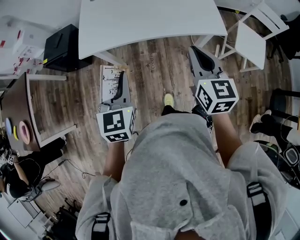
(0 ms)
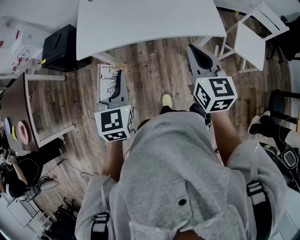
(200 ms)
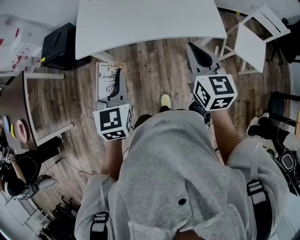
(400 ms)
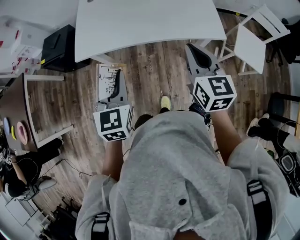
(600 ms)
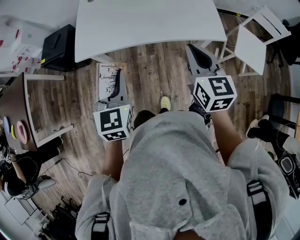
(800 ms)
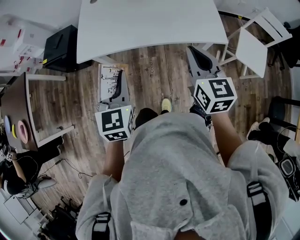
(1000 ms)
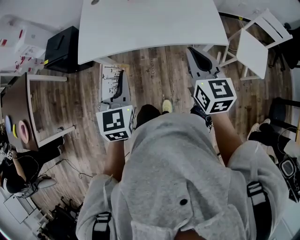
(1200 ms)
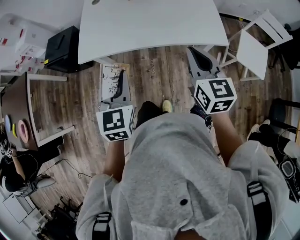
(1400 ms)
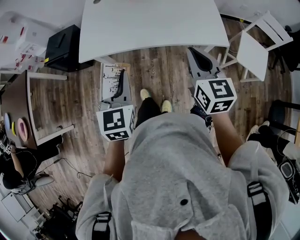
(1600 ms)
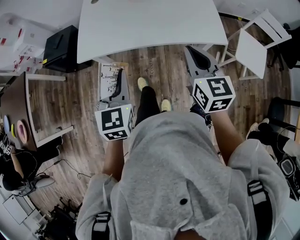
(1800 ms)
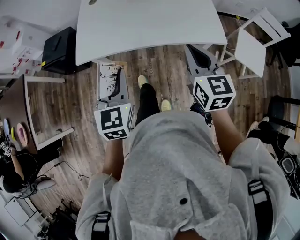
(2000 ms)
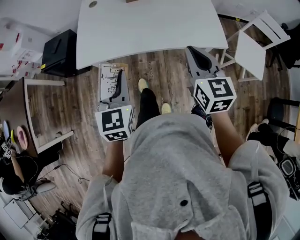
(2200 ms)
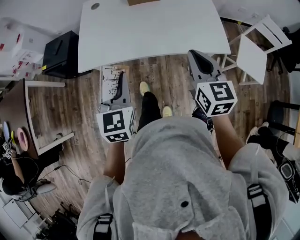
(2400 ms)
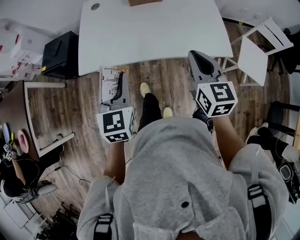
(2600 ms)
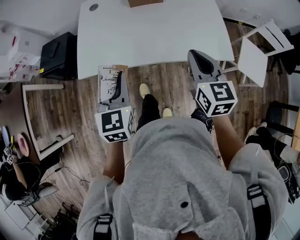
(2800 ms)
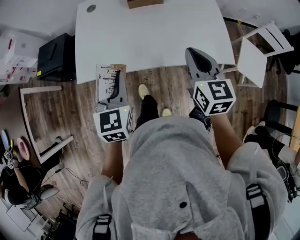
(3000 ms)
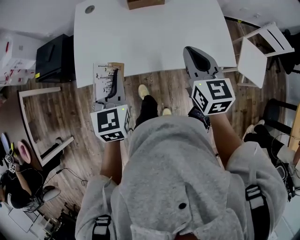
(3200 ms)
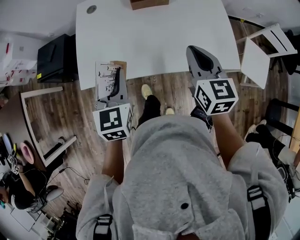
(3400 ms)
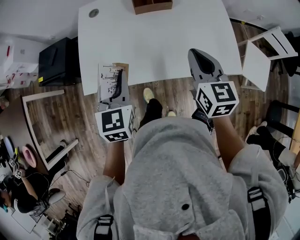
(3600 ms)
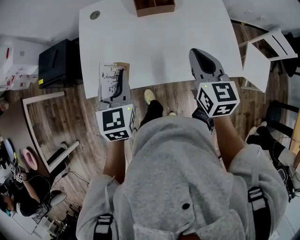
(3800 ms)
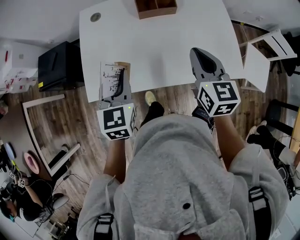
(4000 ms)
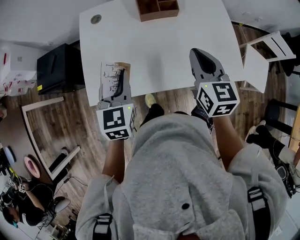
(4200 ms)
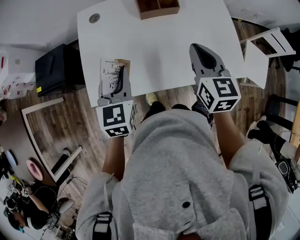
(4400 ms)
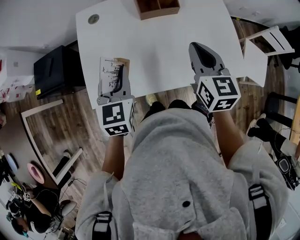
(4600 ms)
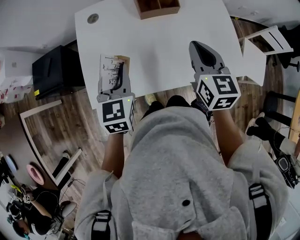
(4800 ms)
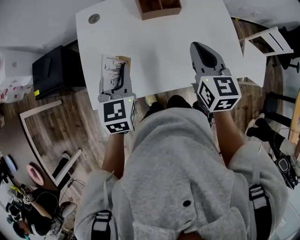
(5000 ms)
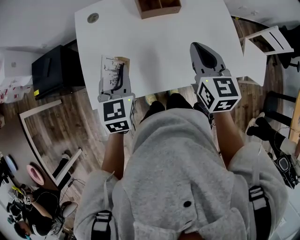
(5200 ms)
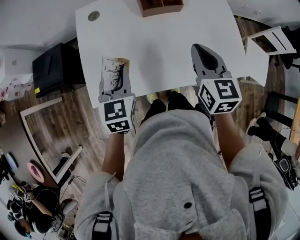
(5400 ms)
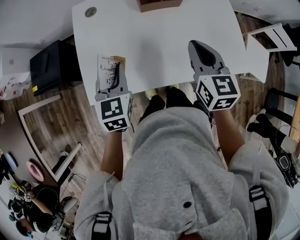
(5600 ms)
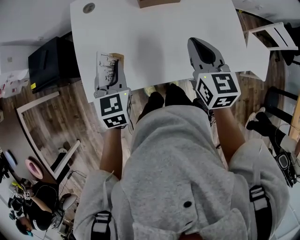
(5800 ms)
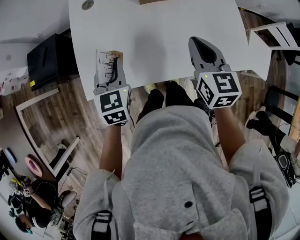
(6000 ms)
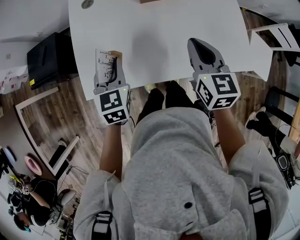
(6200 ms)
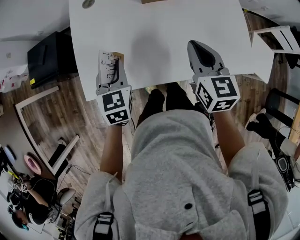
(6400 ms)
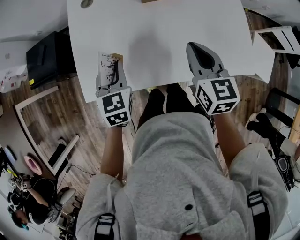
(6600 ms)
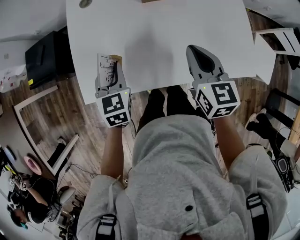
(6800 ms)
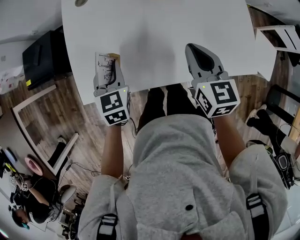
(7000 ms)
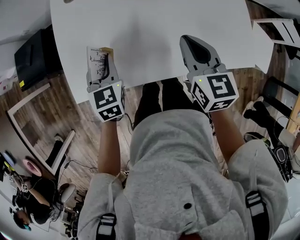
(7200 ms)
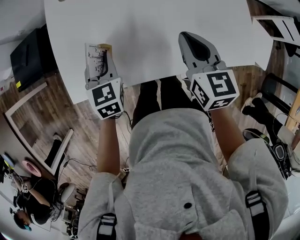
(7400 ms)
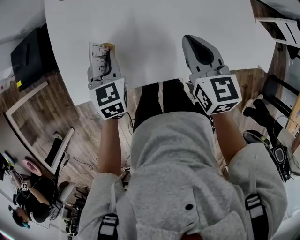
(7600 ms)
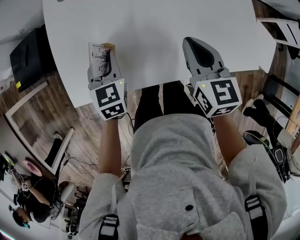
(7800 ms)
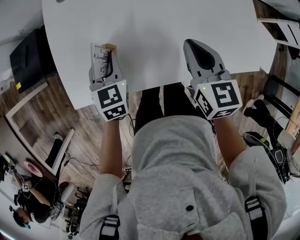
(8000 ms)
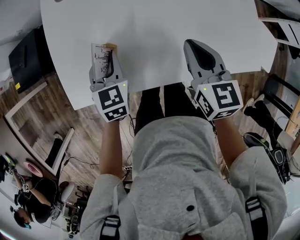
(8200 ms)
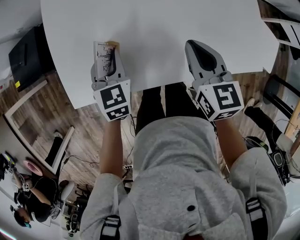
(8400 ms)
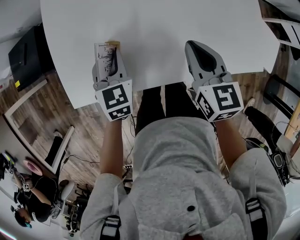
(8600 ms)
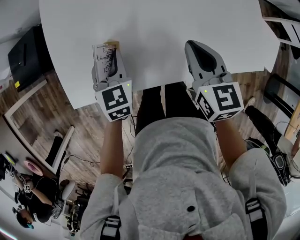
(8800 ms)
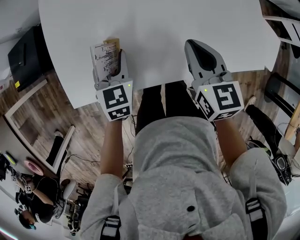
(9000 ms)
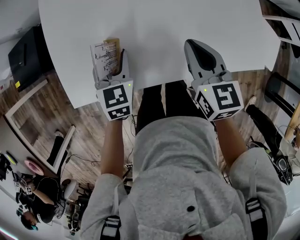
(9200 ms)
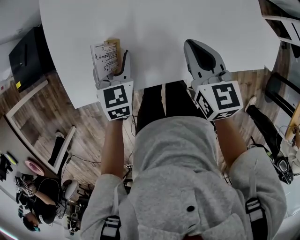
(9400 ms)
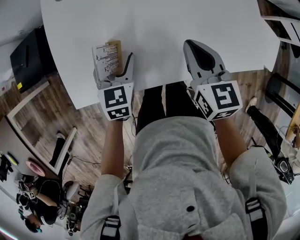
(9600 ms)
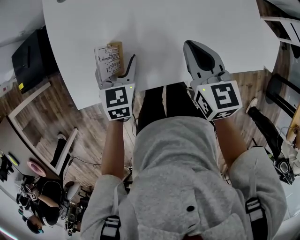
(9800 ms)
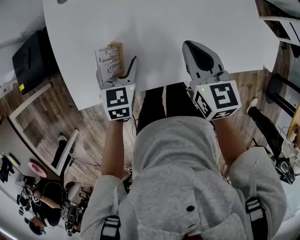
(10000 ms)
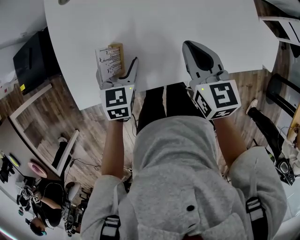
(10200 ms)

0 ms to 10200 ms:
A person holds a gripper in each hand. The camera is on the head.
0 ms to 1400 ms: The grippers make only small movements.
1400 ms to 3000 ms: The two grippers go roughly 15 cm forward.
3000 ms to 4400 ms: The two grippers go about 15 cm forward and to the left.
4400 ms to 5800 ms: The left gripper travels downward by some 5 cm.
5800 ms to 7200 ms: Both grippers travel together downward, about 5 cm.
7200 ms to 8800 ms: The left gripper shifts roughly 5 cm to the right, while the right gripper moves roughly 5 cm.
8800 ms to 10200 ms: The left gripper opens up.

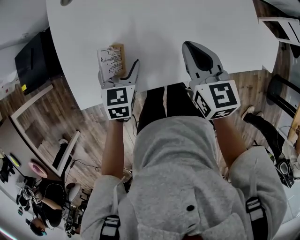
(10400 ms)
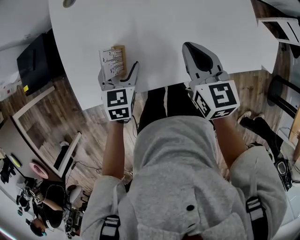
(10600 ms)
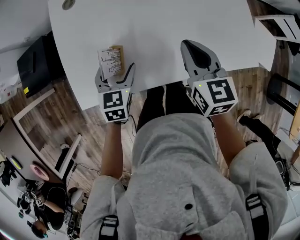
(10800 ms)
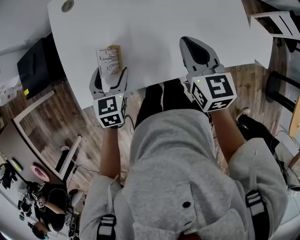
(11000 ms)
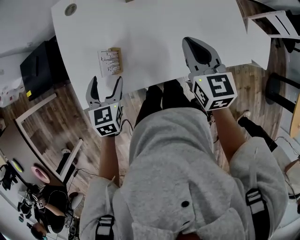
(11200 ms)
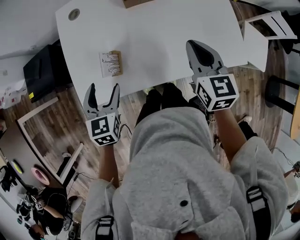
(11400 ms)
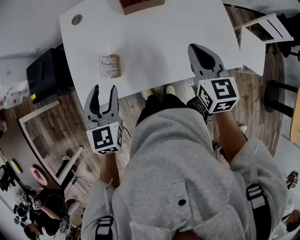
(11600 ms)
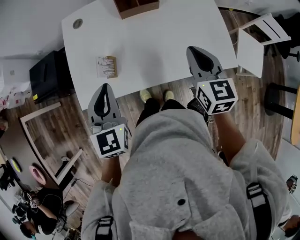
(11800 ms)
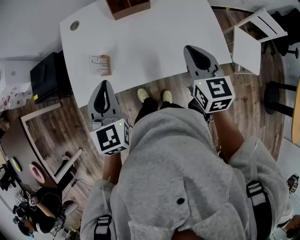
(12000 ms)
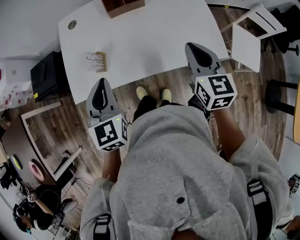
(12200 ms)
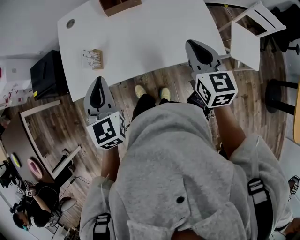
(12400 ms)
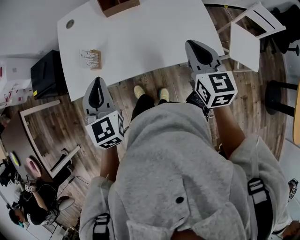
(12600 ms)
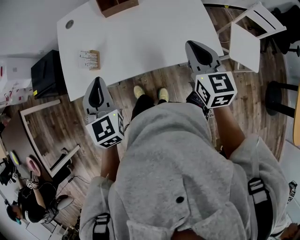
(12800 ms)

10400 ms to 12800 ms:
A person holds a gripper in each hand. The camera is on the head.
10400 ms to 11600 ms: The left gripper moves upward and backward, roughly 20 cm. Meanwhile the right gripper shifts about 10 cm upward and to the right.
11600 ms to 12800 ms: The right gripper moves to the right and backward, roughly 15 cm; the left gripper goes approximately 15 cm to the right, backward and upward, and closes.

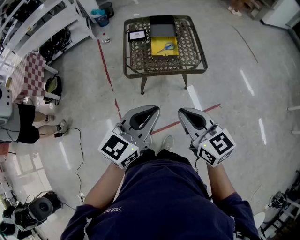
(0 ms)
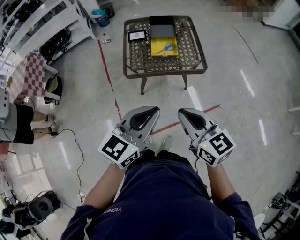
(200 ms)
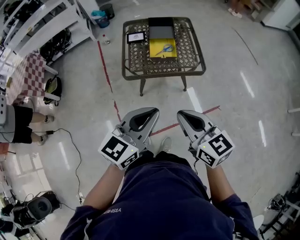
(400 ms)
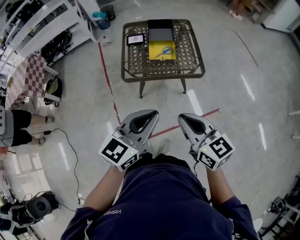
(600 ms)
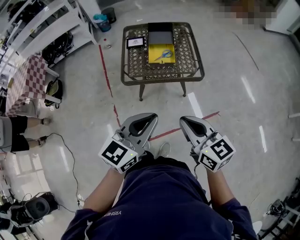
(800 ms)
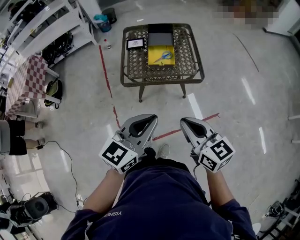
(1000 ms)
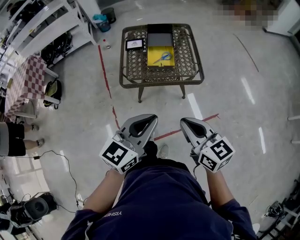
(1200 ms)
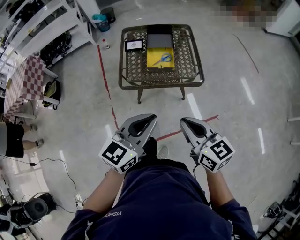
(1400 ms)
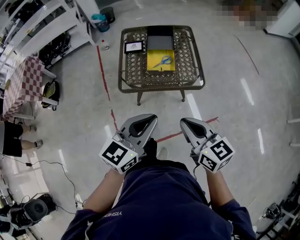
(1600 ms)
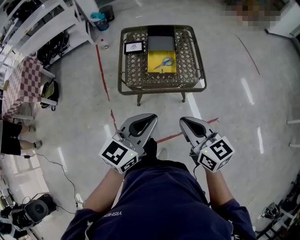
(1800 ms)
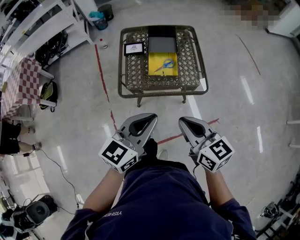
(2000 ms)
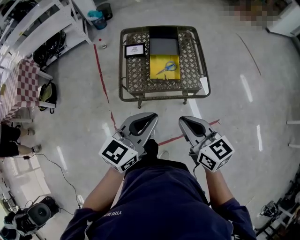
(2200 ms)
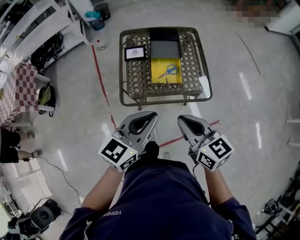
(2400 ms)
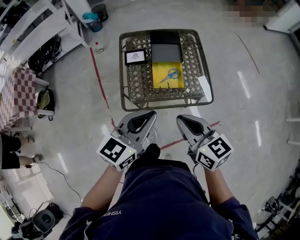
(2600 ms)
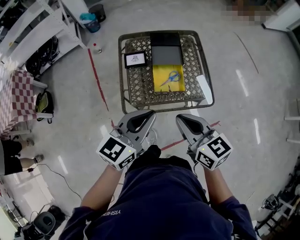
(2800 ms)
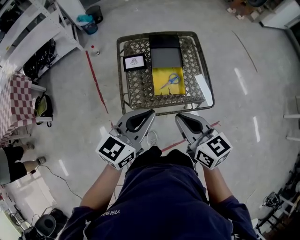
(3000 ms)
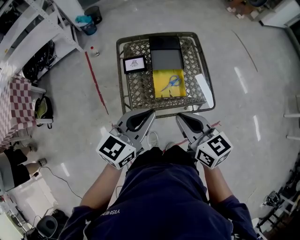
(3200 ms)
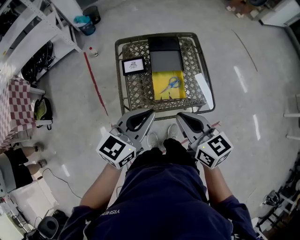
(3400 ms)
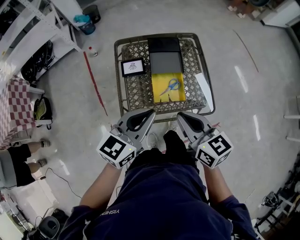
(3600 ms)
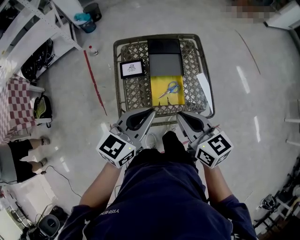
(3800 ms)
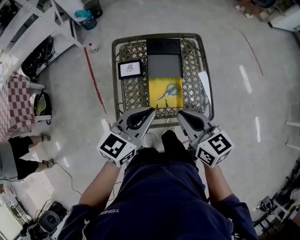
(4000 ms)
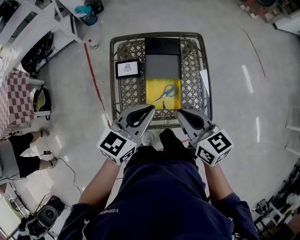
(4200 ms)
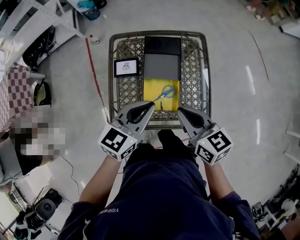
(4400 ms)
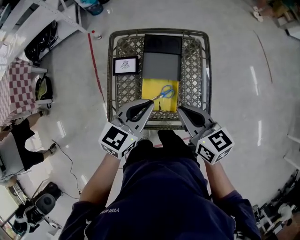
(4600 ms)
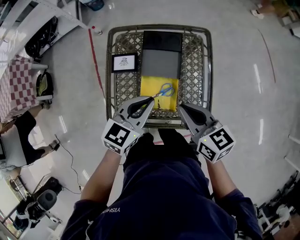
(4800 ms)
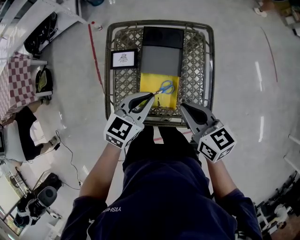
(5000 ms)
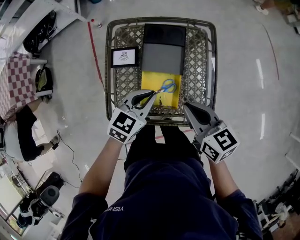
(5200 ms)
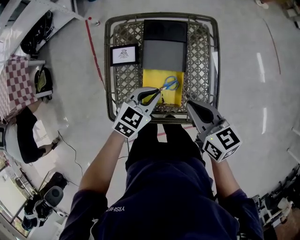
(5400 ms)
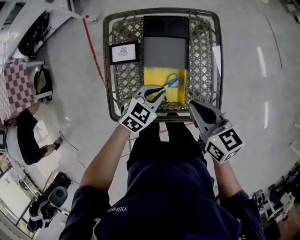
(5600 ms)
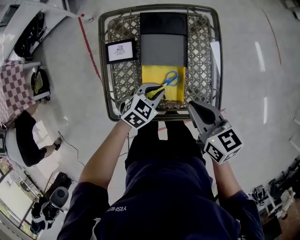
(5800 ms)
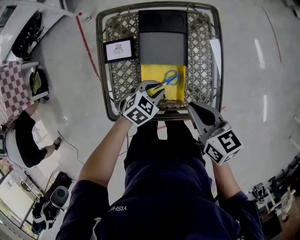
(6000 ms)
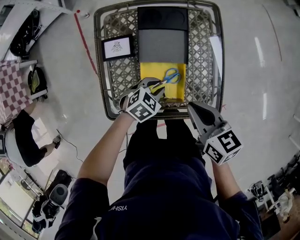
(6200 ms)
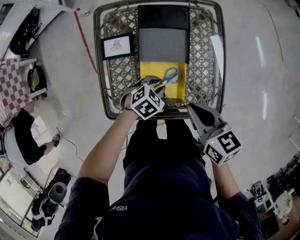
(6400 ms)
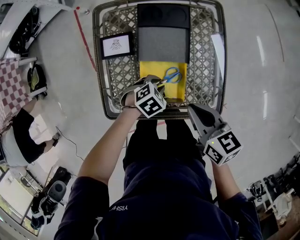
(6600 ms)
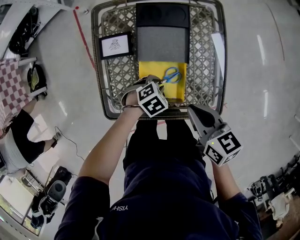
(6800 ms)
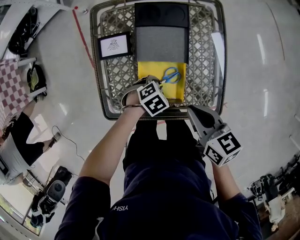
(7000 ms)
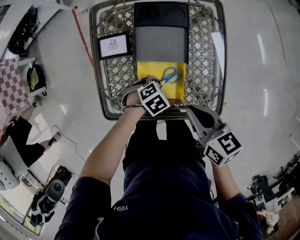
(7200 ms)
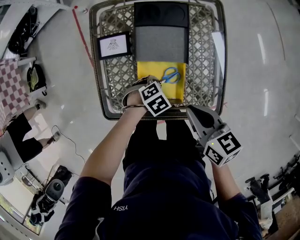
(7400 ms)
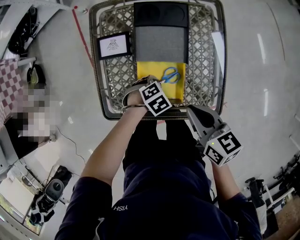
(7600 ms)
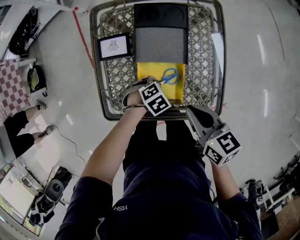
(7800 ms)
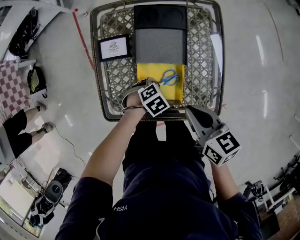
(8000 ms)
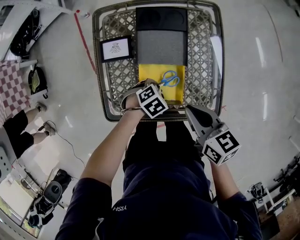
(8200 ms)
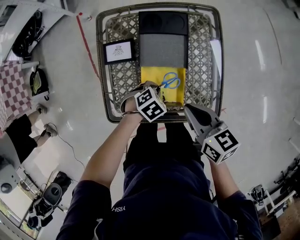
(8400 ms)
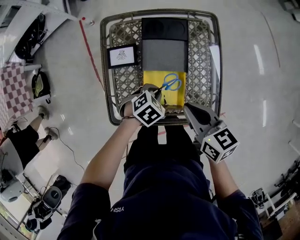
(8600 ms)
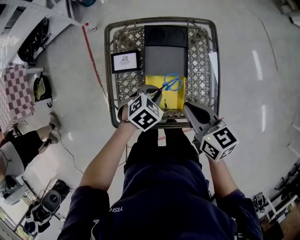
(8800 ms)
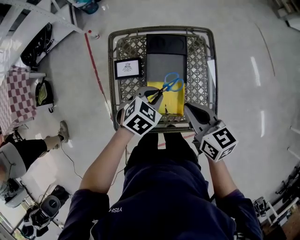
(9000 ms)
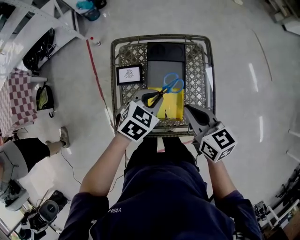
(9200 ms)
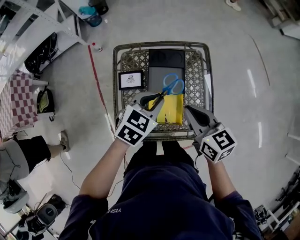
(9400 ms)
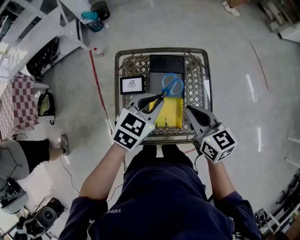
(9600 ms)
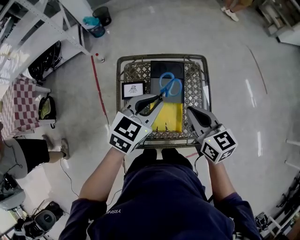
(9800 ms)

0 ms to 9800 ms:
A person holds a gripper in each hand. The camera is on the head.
0 ms to 1400 ms: The left gripper is displaced forward by some 5 cm, while the right gripper shifts approximately 10 cm to the right and forward.
1400 ms to 2800 ms: The right gripper travels forward and to the left by roughly 25 cm. The left gripper heads forward, covering approximately 25 cm.
2800 ms to 4200 ms: The grippers both shift forward by about 15 cm.
4200 ms to 5600 ms: The left gripper shifts roughly 20 cm downward, and changes its angle by some 30 degrees. Meanwhile the right gripper shifts approximately 10 cm downward, forward and to the right.
5600 ms to 7000 ms: The left gripper travels downward by some 15 cm, and tips its fingers downward by approximately 30 degrees. The right gripper heads downward, covering about 5 cm.
7000 ms to 8400 ms: There are only small adjustments of the grippers.
8400 ms to 9800 ms: The right gripper goes roughly 15 cm upward and forward. Meanwhile the left gripper heads upward, covering approximately 35 cm, and points its fingers about 50 degrees further upward.

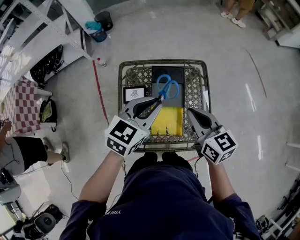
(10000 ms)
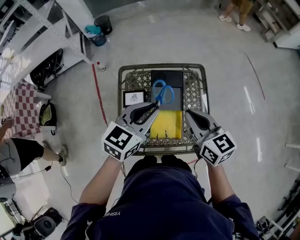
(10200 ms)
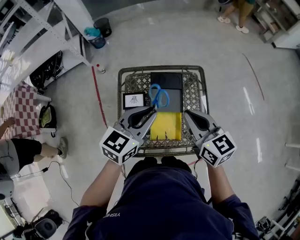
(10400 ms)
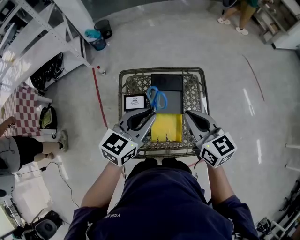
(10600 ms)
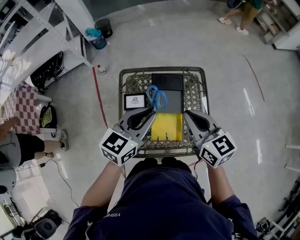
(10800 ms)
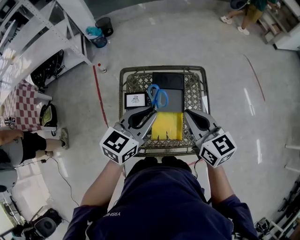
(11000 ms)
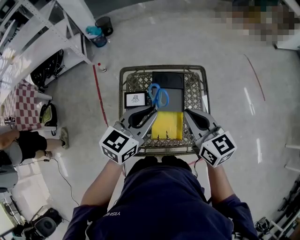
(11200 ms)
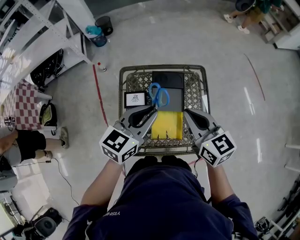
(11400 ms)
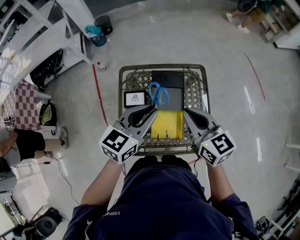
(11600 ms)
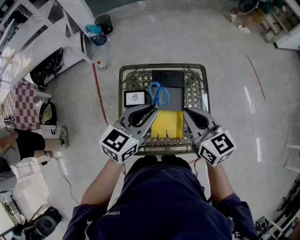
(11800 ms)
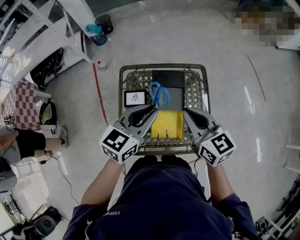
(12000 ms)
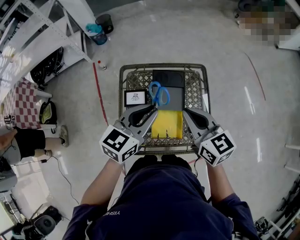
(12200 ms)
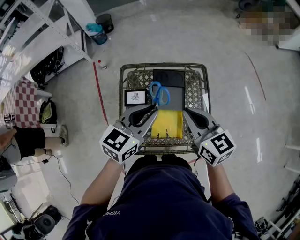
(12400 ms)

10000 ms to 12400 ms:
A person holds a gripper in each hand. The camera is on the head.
10000 ms to 11200 ms: The grippers make only small movements.
11200 ms to 12400 ms: Neither gripper changes place.
